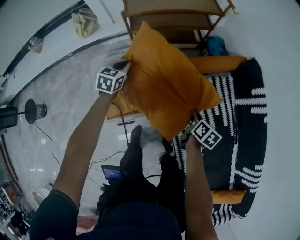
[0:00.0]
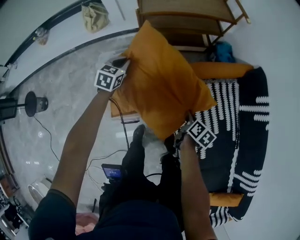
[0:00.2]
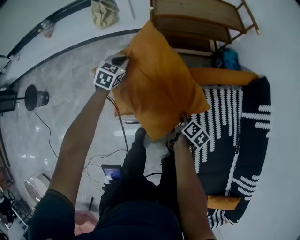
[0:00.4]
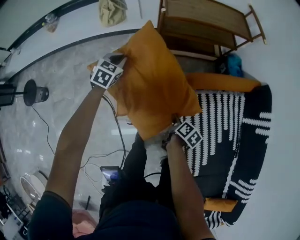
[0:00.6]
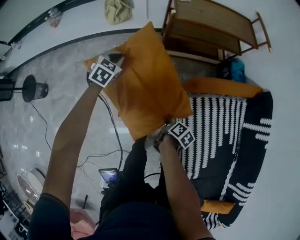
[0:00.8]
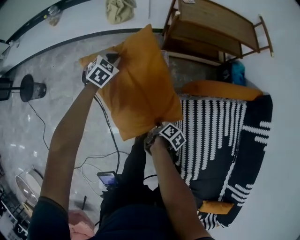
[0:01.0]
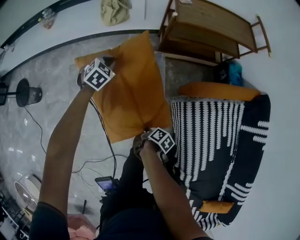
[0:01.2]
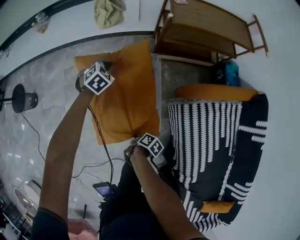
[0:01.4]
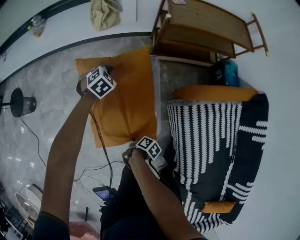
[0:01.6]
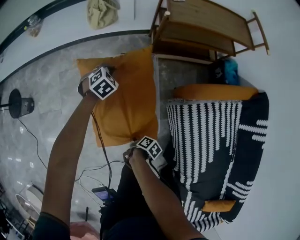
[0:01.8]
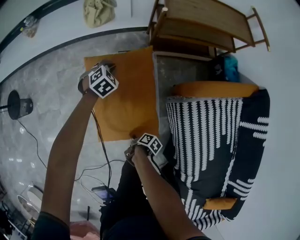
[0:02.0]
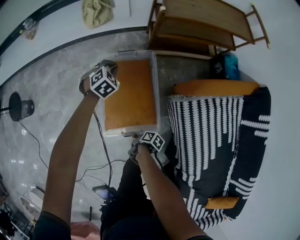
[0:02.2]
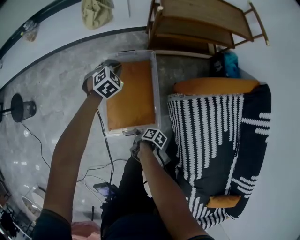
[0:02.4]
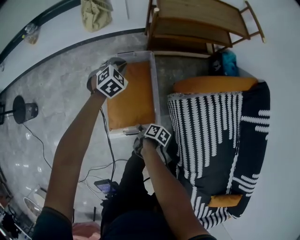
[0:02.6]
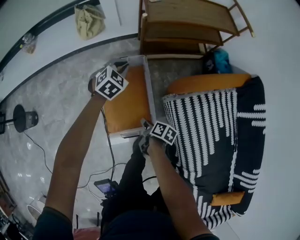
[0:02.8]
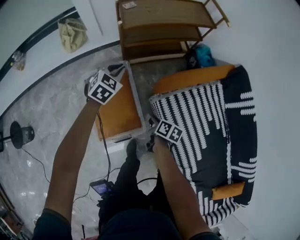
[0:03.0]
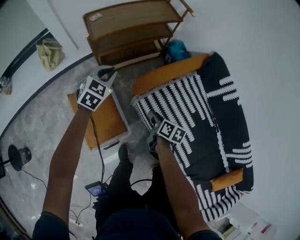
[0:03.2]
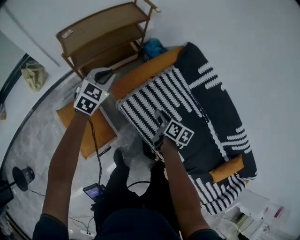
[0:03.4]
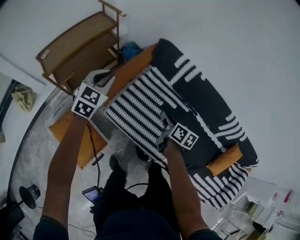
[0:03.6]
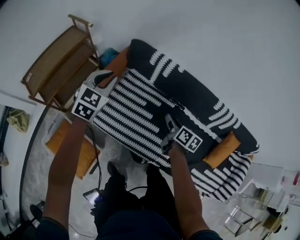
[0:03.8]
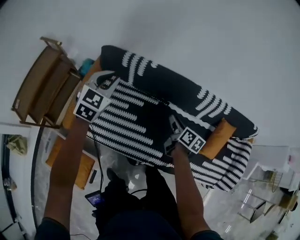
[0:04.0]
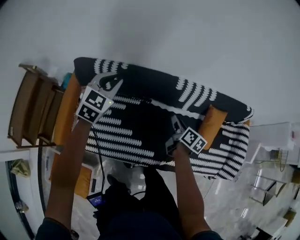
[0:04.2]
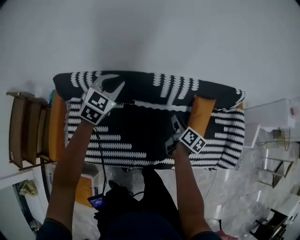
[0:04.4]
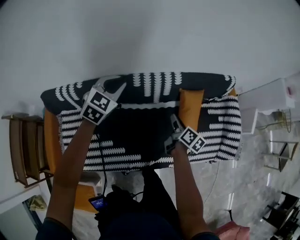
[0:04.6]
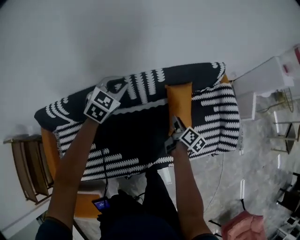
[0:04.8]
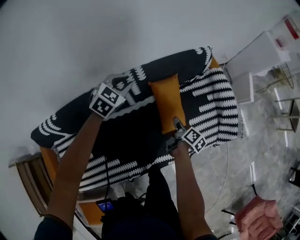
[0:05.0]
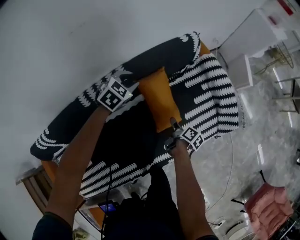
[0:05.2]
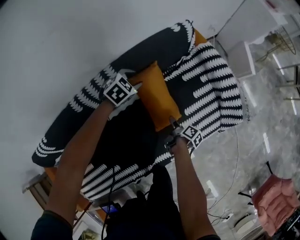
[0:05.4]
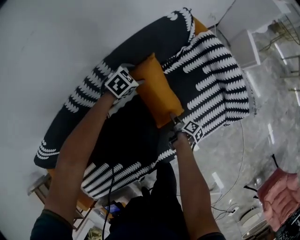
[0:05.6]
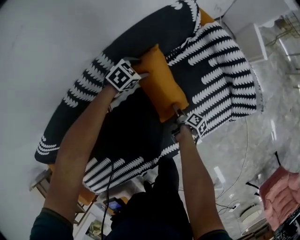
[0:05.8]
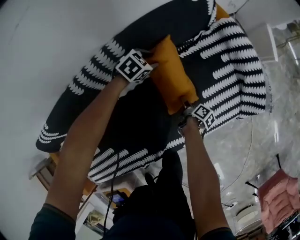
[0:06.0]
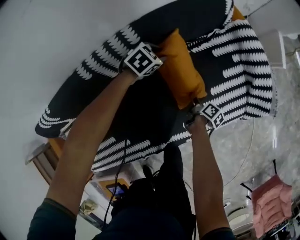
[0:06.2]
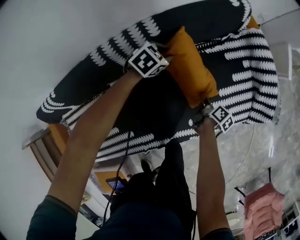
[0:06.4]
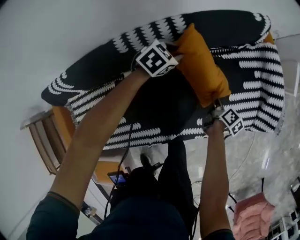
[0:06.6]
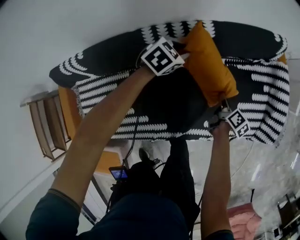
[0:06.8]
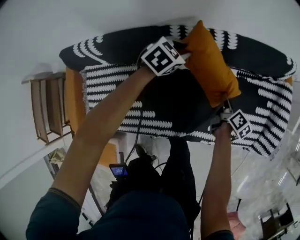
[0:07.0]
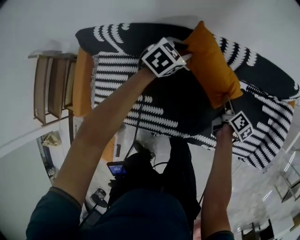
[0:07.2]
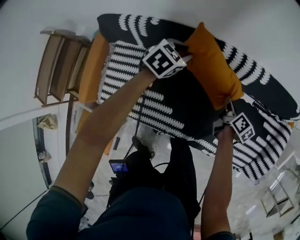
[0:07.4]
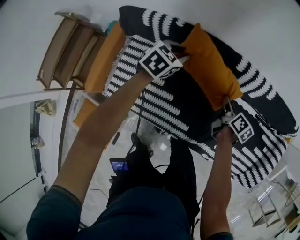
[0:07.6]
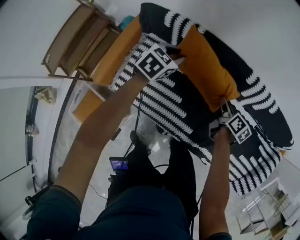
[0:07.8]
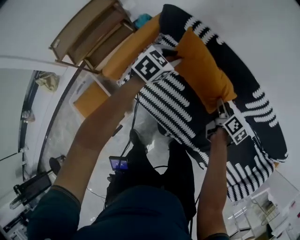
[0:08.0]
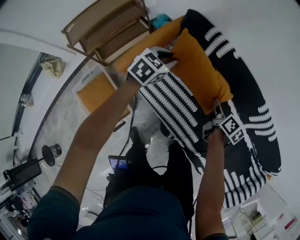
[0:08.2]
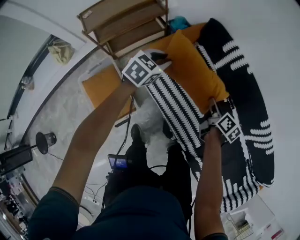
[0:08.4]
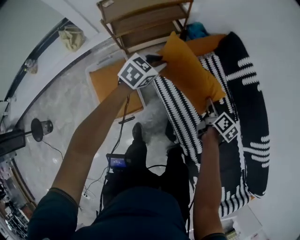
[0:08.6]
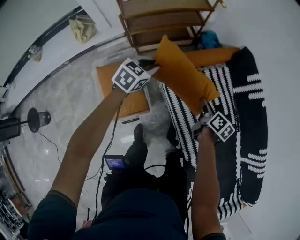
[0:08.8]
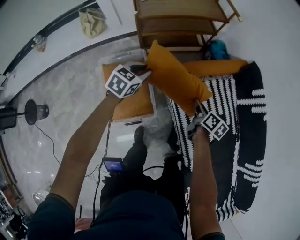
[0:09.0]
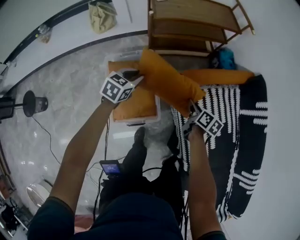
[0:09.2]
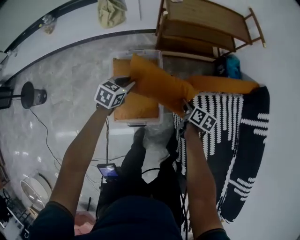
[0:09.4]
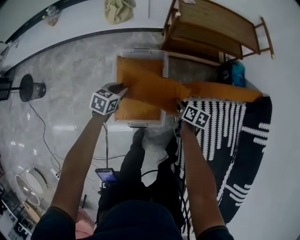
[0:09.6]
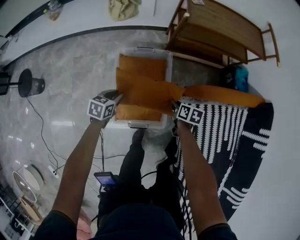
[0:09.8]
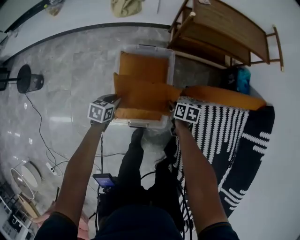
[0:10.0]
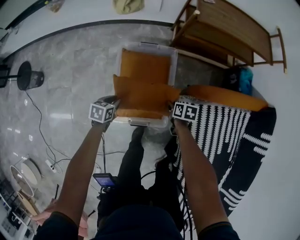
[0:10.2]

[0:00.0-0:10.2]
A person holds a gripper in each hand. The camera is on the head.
0:00.0 to 0:01.4: The right gripper ends up approximately 50 cm from where it was, and turns by approximately 40 degrees. The left gripper moves roughly 30 cm, and rotates some 30 degrees.
0:01.4 to 0:03.0: The right gripper moves some 25 cm, and turns by approximately 30 degrees, while the left gripper changes place by roughly 25 cm, and changes its angle by approximately 20 degrees.
0:03.0 to 0:04.4: Both grippers are carried about 1 m. The right gripper changes its angle by approximately 80 degrees; the left gripper changes its angle by approximately 70 degrees.
0:04.4 to 0:05.8: The left gripper moves some 70 cm, rotates some 60 degrees, and opens. Meanwhile the right gripper is displaced downward by roughly 35 cm, twists approximately 60 degrees clockwise, seen from behind, and opens.
0:05.8 to 0:07.2: The left gripper ends up some 50 cm from where it was, rotates approximately 40 degrees, and closes its fingers; the right gripper ends up roughly 35 cm from where it was, rotates around the line of its fingers by roughly 50 degrees, counterclockwise from behind, and closes its fingers.
0:07.2 to 0:08.8: The two grippers travel together, roughly 80 cm. The left gripper rotates roughly 70 degrees. Meanwhile the right gripper rotates about 70 degrees.
0:08.8 to 0:10.2: The left gripper ends up some 50 cm from where it was, and twists some 50 degrees counterclockwise, seen from behind; the right gripper moves approximately 50 cm, and changes its angle by about 60 degrees.

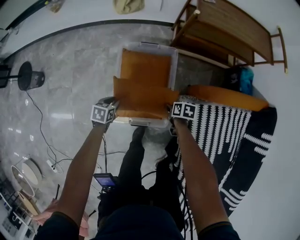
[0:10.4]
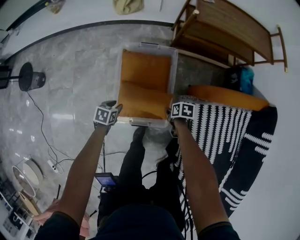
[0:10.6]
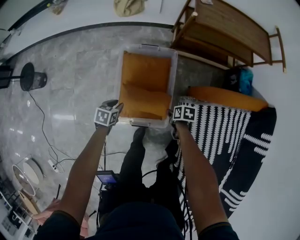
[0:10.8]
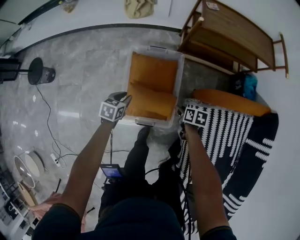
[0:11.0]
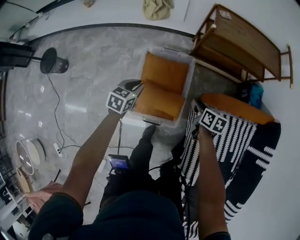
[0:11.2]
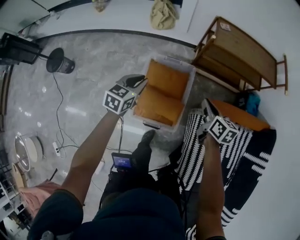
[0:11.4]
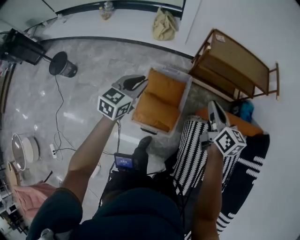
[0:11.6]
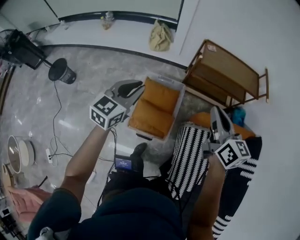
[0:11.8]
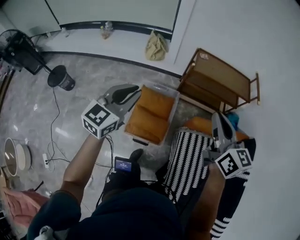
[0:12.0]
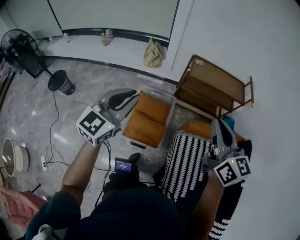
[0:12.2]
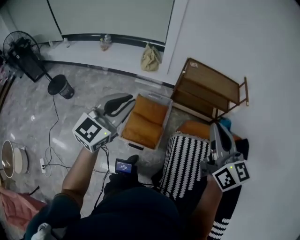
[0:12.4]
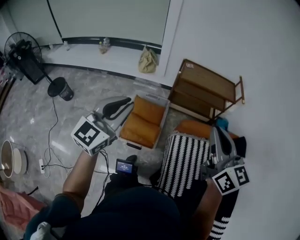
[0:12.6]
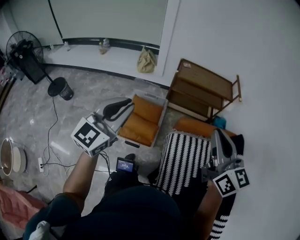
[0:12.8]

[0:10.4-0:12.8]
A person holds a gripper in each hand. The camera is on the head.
0:10.4 to 0:11.6: The two grippers go some 40 cm upward. The left gripper angles its fingers upward, by approximately 40 degrees, while the right gripper tips its fingers upward by about 50 degrees, and closes.
0:11.6 to 0:12.8: The grippers both shift backward, upward and to the right by about 40 cm. The right gripper changes its angle by about 30 degrees; the left gripper rotates some 30 degrees.

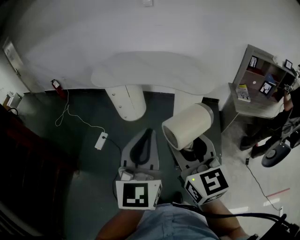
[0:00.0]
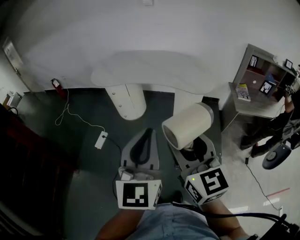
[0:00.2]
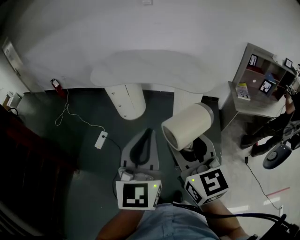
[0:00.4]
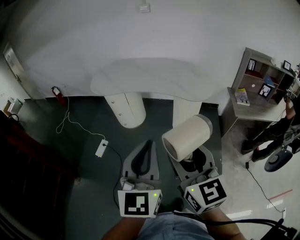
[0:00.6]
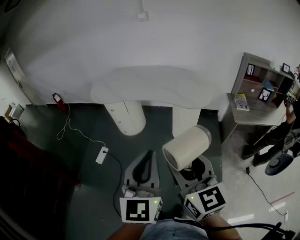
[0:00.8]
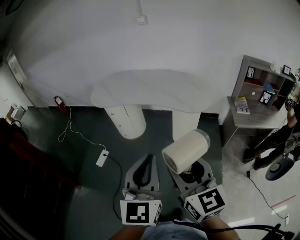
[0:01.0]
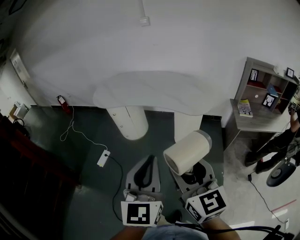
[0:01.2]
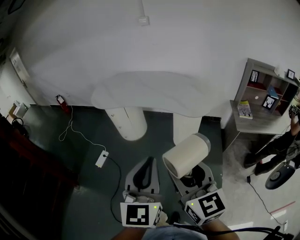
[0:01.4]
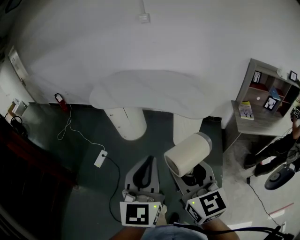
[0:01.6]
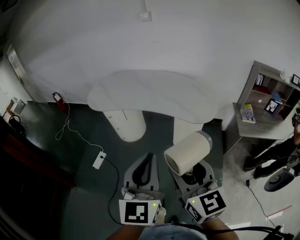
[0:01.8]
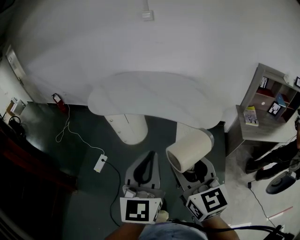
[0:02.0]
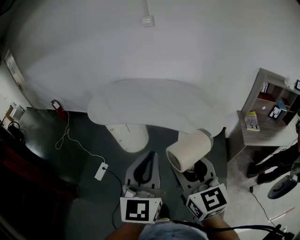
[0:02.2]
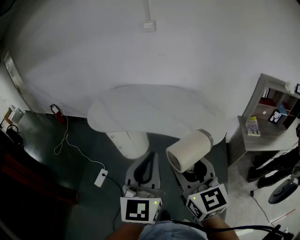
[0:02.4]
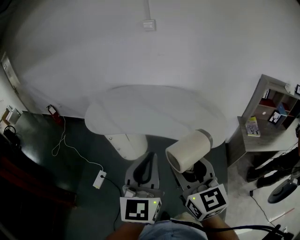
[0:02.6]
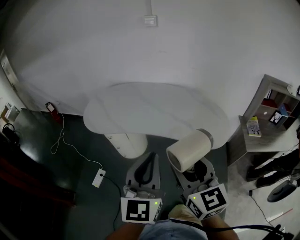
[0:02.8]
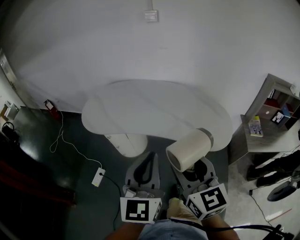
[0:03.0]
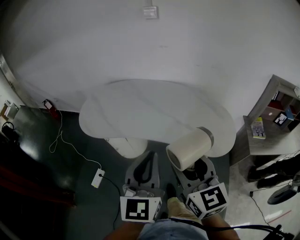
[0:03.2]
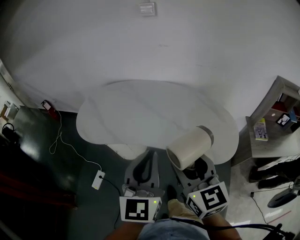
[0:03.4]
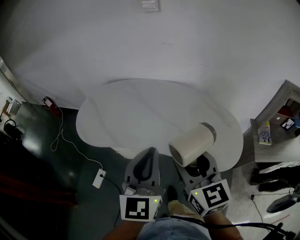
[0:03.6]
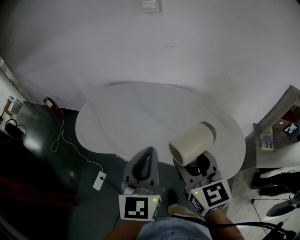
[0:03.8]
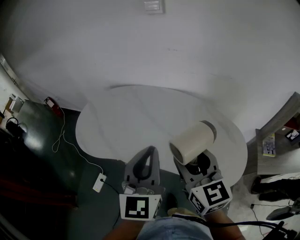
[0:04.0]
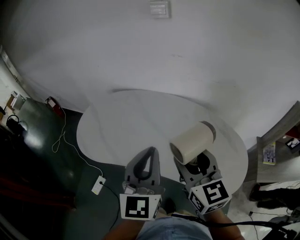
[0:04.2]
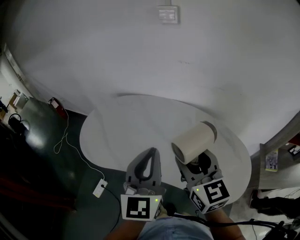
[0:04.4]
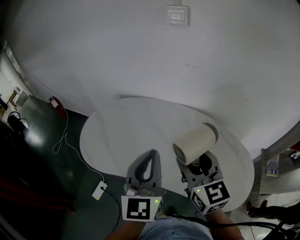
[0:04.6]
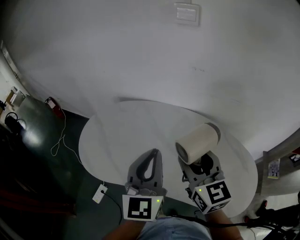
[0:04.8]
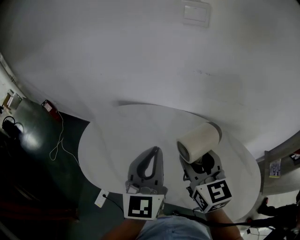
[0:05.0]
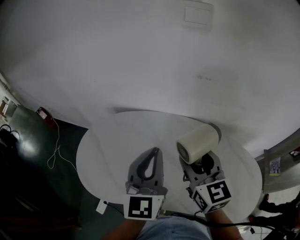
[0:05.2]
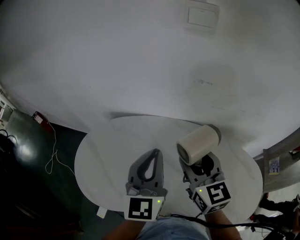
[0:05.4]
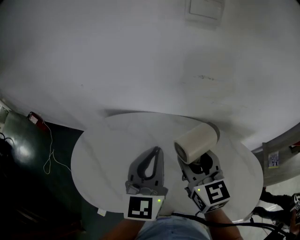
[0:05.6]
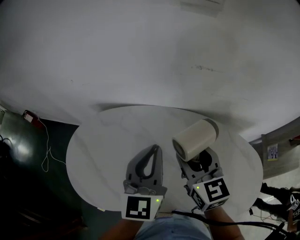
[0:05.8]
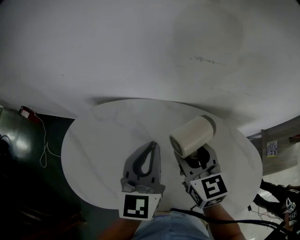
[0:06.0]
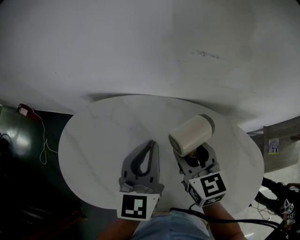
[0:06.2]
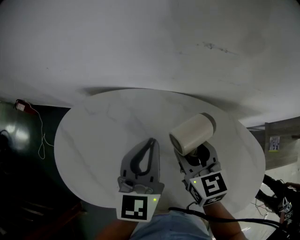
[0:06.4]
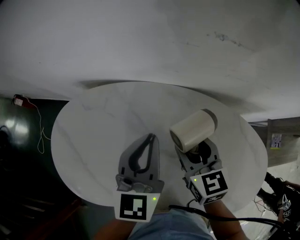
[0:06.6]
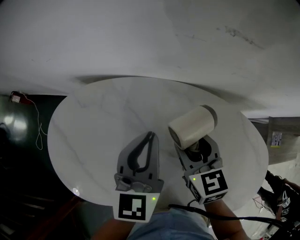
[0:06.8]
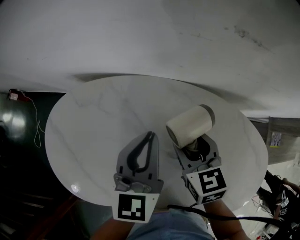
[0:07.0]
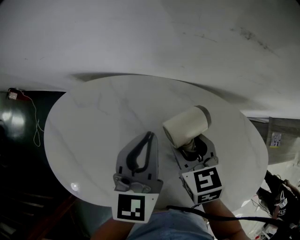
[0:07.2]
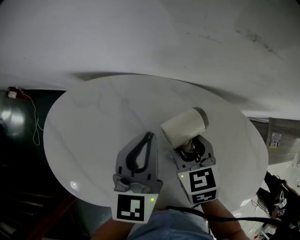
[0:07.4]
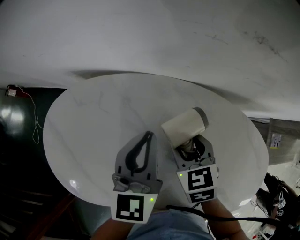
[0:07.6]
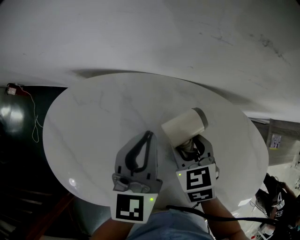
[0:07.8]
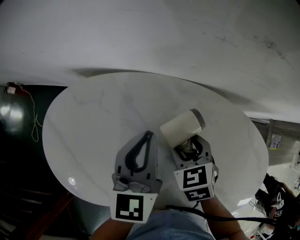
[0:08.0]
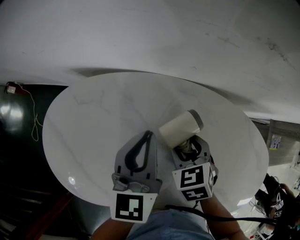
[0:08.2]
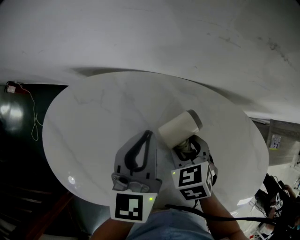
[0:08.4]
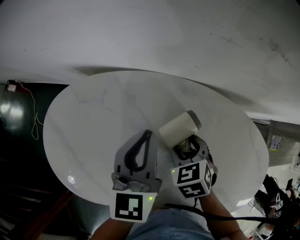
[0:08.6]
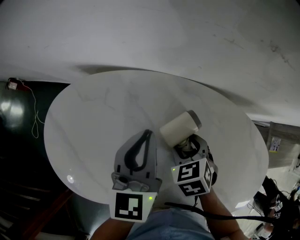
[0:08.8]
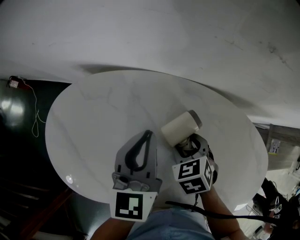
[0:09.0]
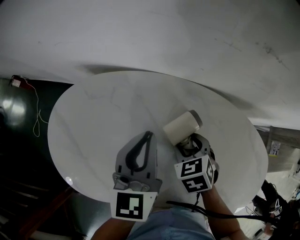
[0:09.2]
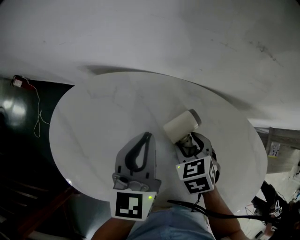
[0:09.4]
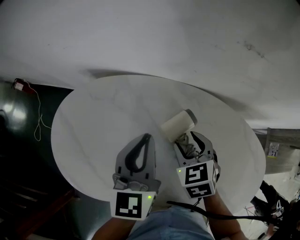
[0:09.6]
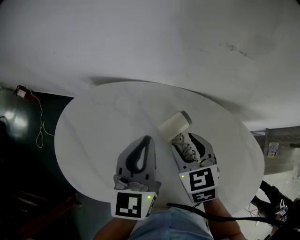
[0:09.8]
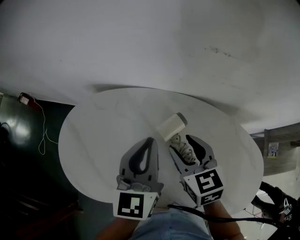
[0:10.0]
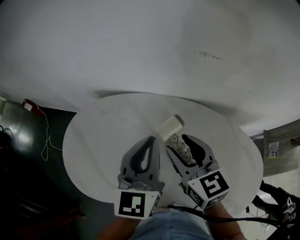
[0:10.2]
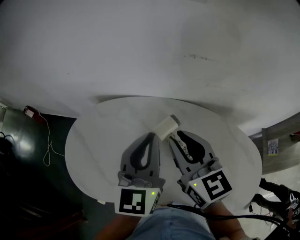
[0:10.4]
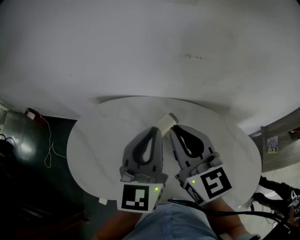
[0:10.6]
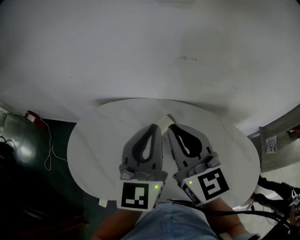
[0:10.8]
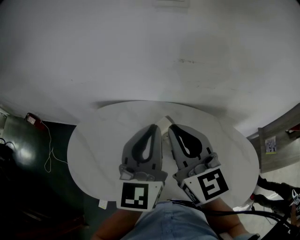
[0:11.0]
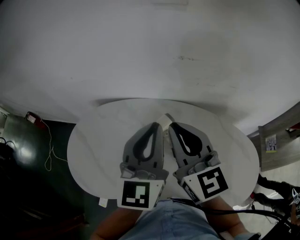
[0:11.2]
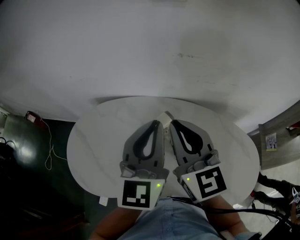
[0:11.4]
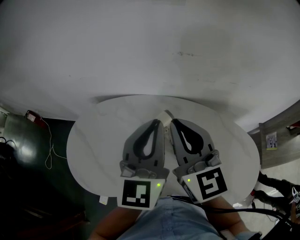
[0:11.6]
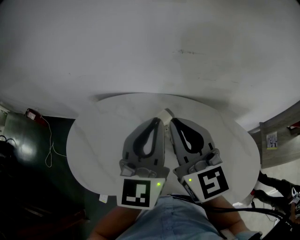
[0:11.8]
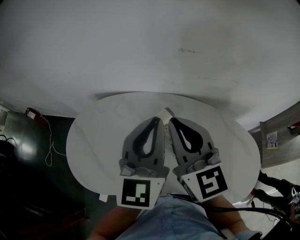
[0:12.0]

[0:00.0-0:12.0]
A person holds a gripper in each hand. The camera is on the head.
0:00.0 to 0:01.6: The grippers both shift to the right and forward by some 10 cm.
0:01.6 to 0:03.0: Both grippers move forward, some 30 cm.
0:03.0 to 0:04.4: The grippers both shift forward by approximately 30 cm.
0:04.4 to 0:06.0: The left gripper is displaced forward by about 30 cm. Meanwhile the right gripper moves forward and downward, approximately 30 cm.
0:06.0 to 0:07.6: The right gripper shifts roughly 15 cm downward, and swivels roughly 30 degrees; the left gripper shifts roughly 15 cm downward and forward.
0:07.6 to 0:09.0: There are only small adjustments of the grippers.
0:09.0 to 0:10.4: The right gripper is displaced upward by about 30 cm, tips its fingers upward by roughly 50 degrees, and closes, while the left gripper heads upward and backward, covering about 15 cm, and swivels approximately 20 degrees.
0:10.4 to 0:12.0: The right gripper goes roughly 5 cm upward, and closes up. Meanwhile the left gripper changes place by about 5 cm.
